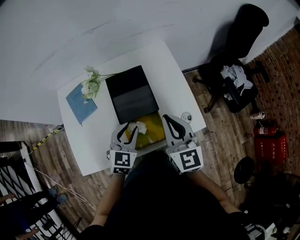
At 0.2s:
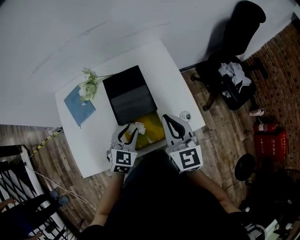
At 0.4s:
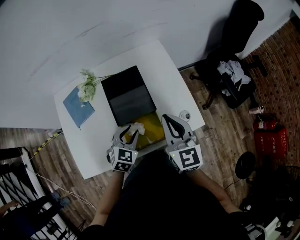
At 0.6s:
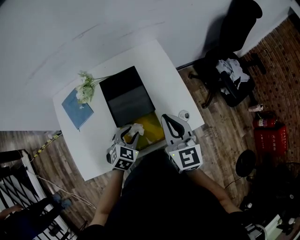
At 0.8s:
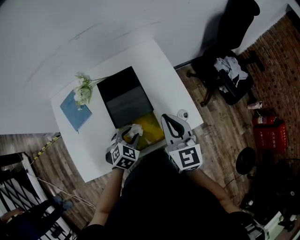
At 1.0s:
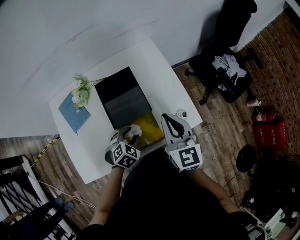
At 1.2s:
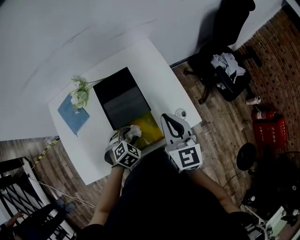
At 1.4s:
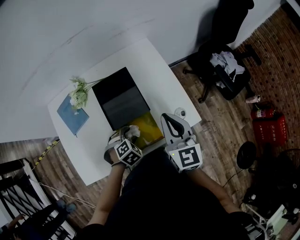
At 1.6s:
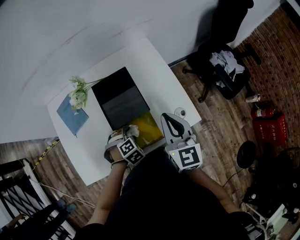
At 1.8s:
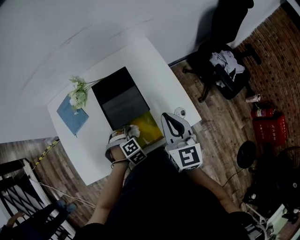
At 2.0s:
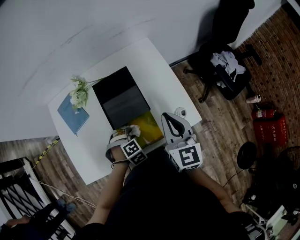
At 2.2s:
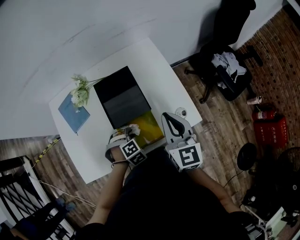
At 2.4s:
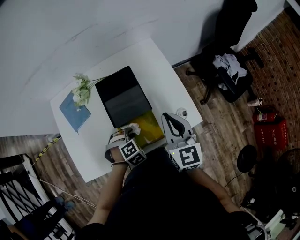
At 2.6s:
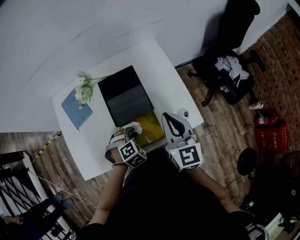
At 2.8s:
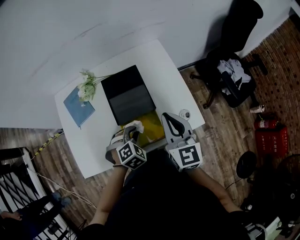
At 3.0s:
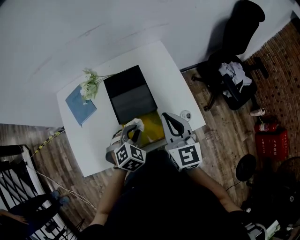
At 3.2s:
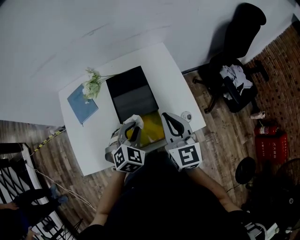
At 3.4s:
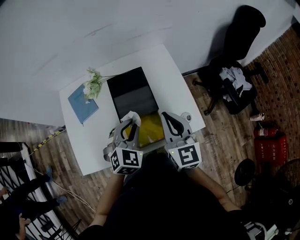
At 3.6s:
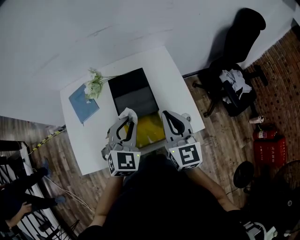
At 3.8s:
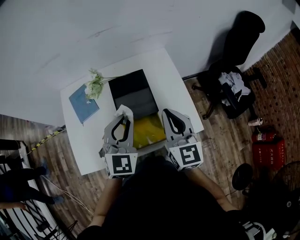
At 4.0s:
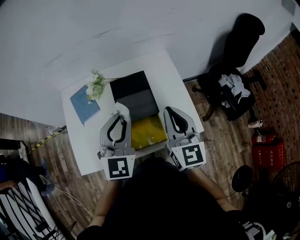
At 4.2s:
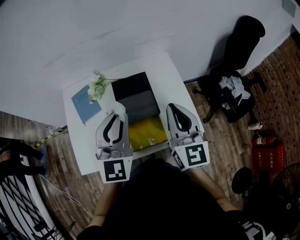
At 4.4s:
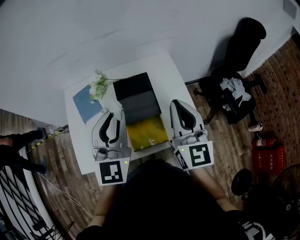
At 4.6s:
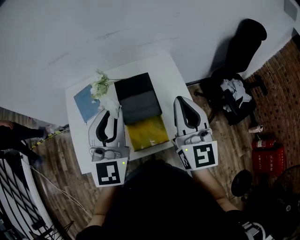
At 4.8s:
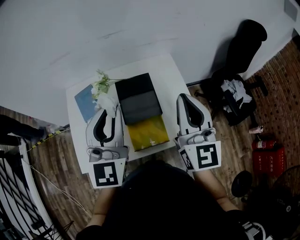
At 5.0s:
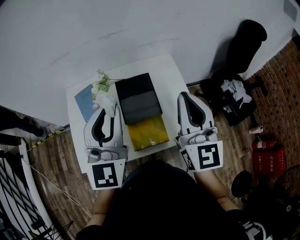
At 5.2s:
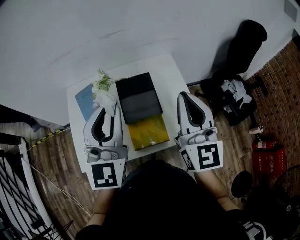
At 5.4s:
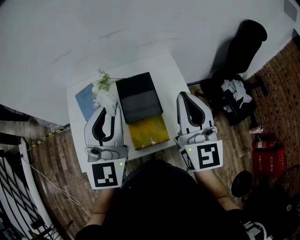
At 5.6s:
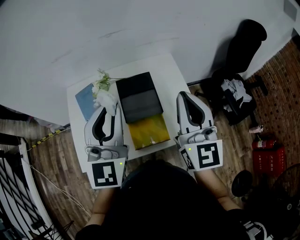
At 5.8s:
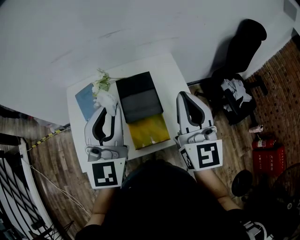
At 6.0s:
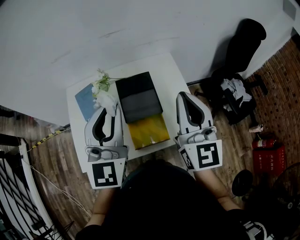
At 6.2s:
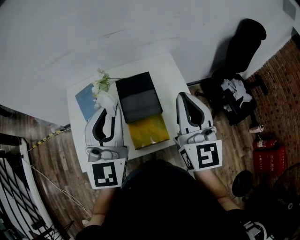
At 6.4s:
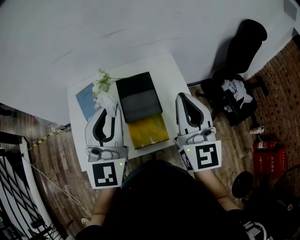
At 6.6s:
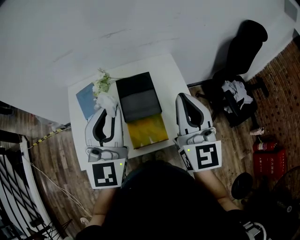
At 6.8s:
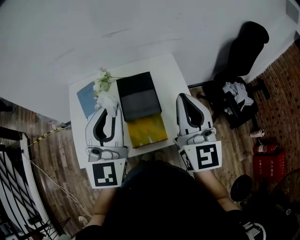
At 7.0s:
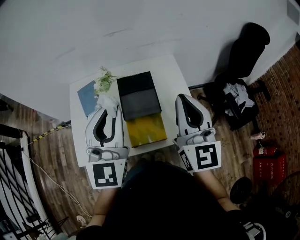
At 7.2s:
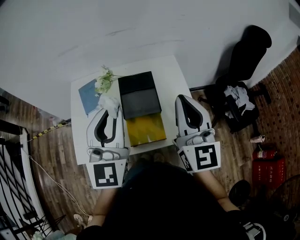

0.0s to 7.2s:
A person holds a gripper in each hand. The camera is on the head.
0.0s to 1.4s: The left gripper shifts approximately 15 cm downward, tips its fingers downward by approximately 40 degrees, and opens its fingers.
1.4s to 2.8s: The left gripper travels upward by approximately 5 cm, and closes.
2.8s to 4.4s: The left gripper travels upward by about 30 cm, and points its fingers some 60 degrees further upward, while the right gripper travels upward by some 15 cm.
4.4s to 7.2s: The grippers stay close to where they were, moving slightly.

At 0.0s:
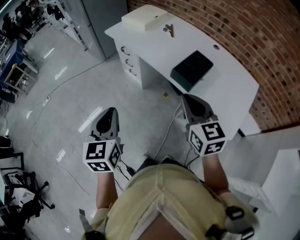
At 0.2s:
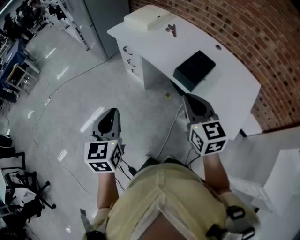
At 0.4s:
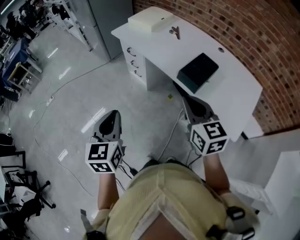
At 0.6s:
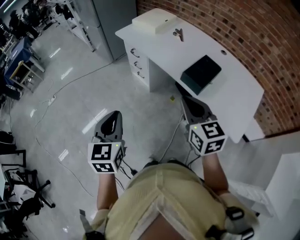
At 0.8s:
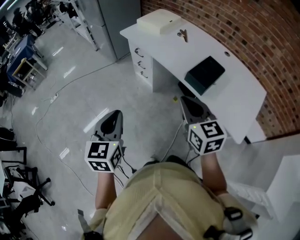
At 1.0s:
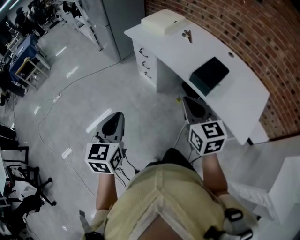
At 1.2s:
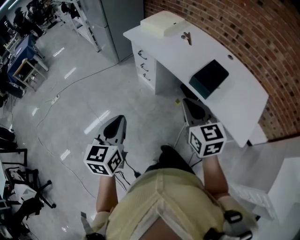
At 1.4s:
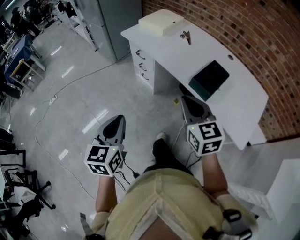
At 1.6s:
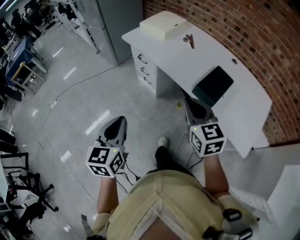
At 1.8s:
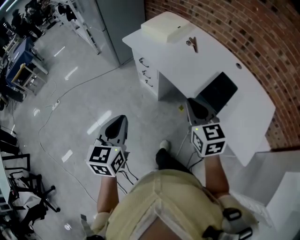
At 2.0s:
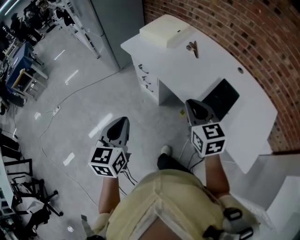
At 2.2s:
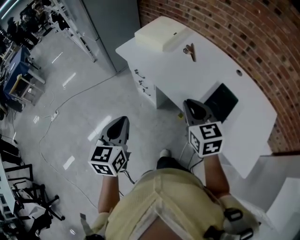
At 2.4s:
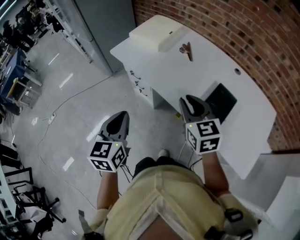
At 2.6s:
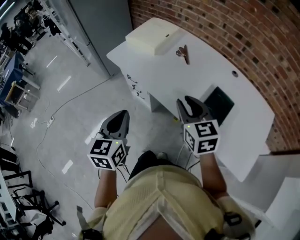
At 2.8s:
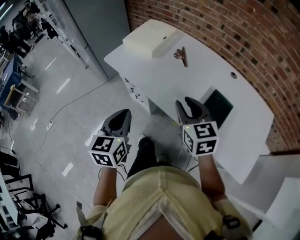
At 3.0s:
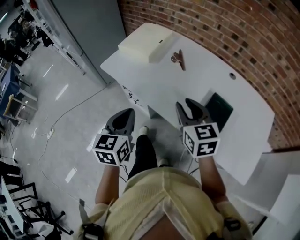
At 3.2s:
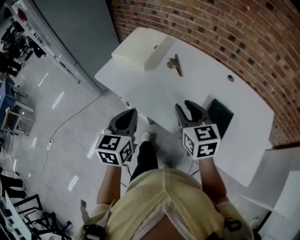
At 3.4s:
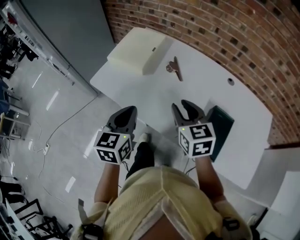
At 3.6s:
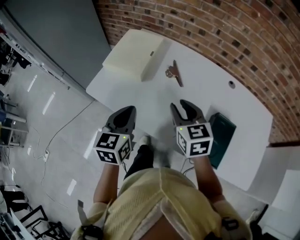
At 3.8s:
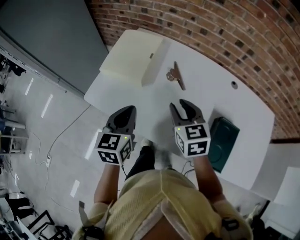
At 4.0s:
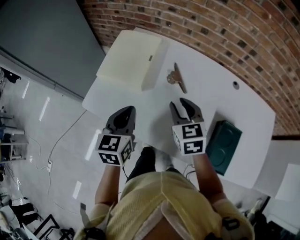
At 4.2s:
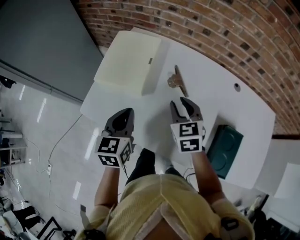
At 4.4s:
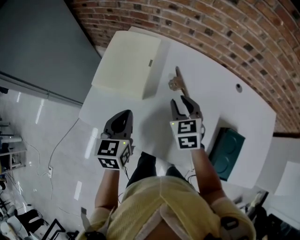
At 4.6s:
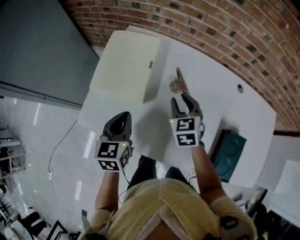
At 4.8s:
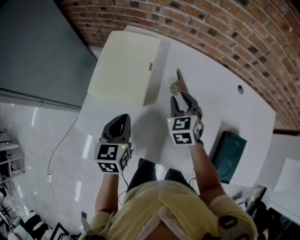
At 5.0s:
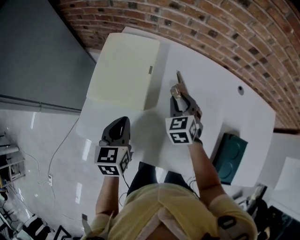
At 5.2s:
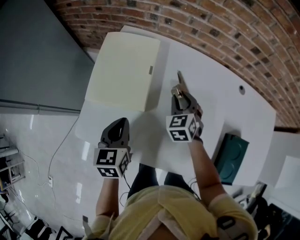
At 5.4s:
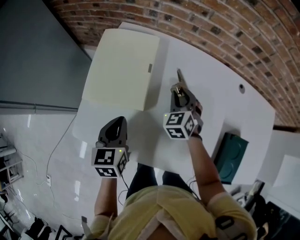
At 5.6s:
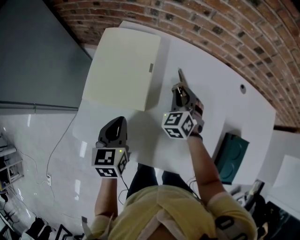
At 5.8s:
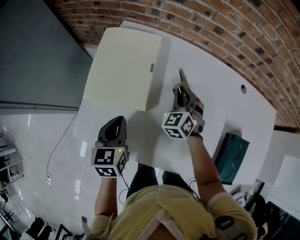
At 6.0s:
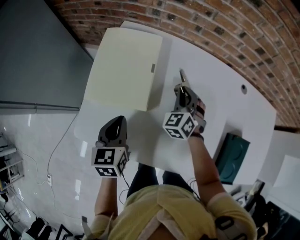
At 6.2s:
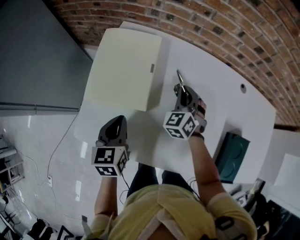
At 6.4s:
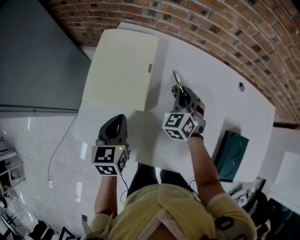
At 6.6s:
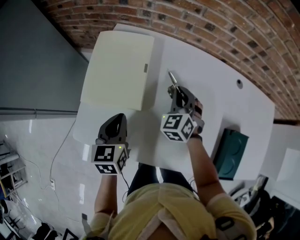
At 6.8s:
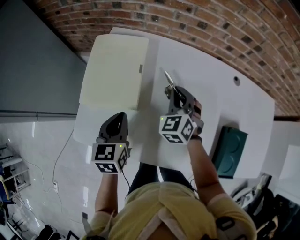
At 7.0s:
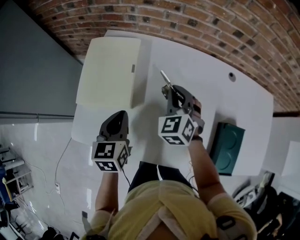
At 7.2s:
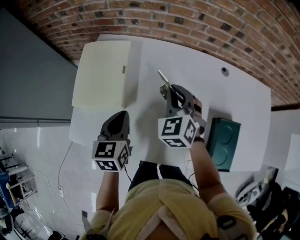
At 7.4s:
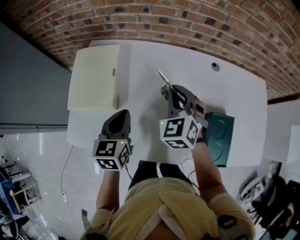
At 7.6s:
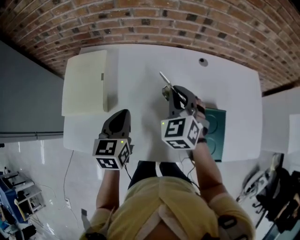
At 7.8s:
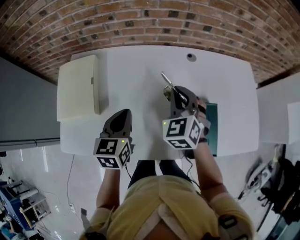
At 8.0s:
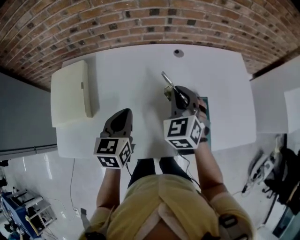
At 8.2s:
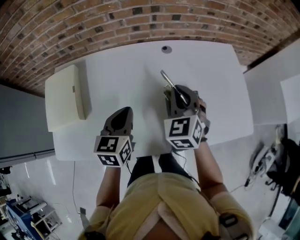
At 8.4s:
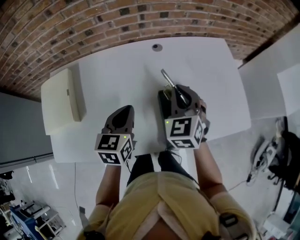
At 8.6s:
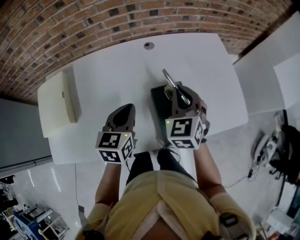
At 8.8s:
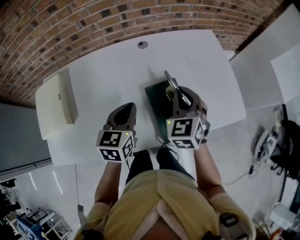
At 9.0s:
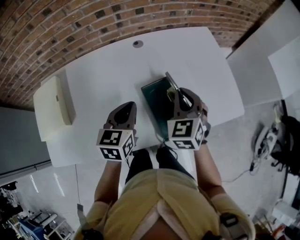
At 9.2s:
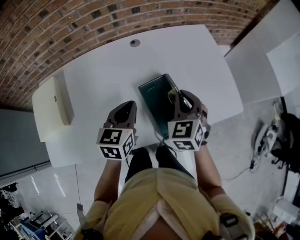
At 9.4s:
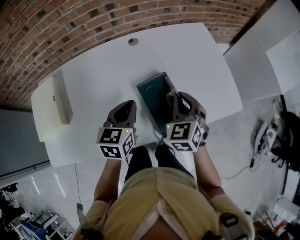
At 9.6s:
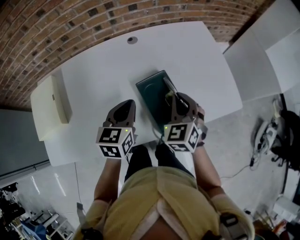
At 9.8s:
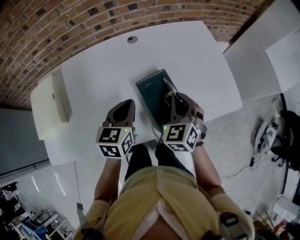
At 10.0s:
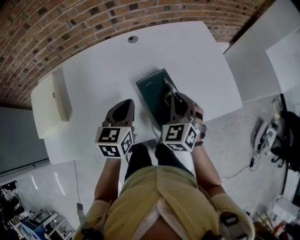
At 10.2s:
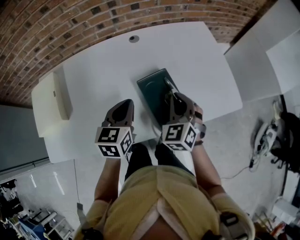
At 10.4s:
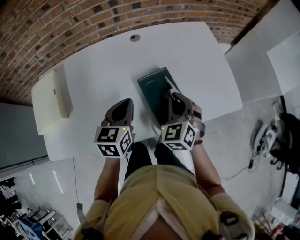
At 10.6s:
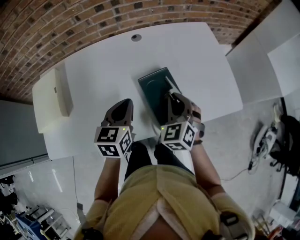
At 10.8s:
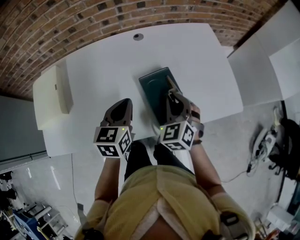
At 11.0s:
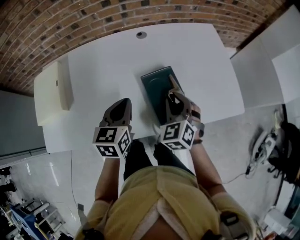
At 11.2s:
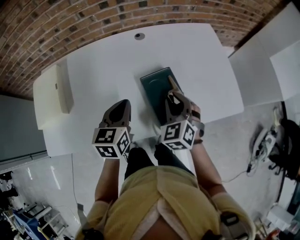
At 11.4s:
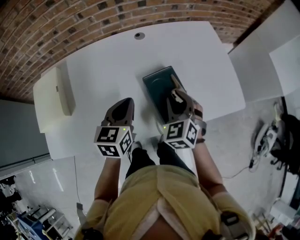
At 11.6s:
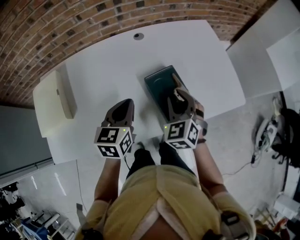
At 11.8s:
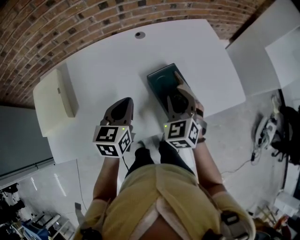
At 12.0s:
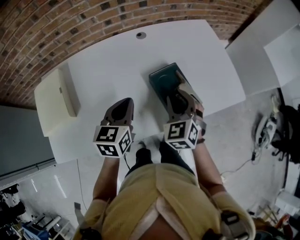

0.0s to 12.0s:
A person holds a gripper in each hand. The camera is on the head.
0.0s to 1.6s: The right gripper is displaced forward and to the left by about 10 cm, while the left gripper heads to the left and forward, covering some 10 cm.
1.6s to 3.0s: The grippers both shift forward by about 25 cm. The right gripper opens its fingers.
3.0s to 4.4s: The two grippers go approximately 30 cm forward. The right gripper changes its angle by approximately 30 degrees.
4.4s to 6.0s: The right gripper is displaced forward and downward by approximately 15 cm, and turns by about 30 degrees, while the left gripper shifts roughly 10 cm downward and to the left.
6.0s to 7.6s: The right gripper shifts about 25 cm to the right, upward and backward; the left gripper moves to the right and upward, some 20 cm.
7.6s to 9.0s: The two grippers go approximately 30 cm to the right. The right gripper rotates some 30 degrees. Meanwhile the left gripper swivels approximately 20 degrees.
9.0s to 10.4s: The right gripper goes about 5 cm downward.
10.4s to 12.0s: The grippers both shift to the left by about 5 cm. The right gripper opens.

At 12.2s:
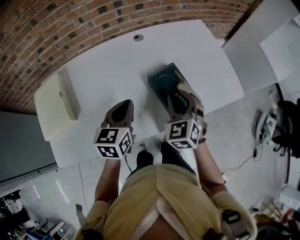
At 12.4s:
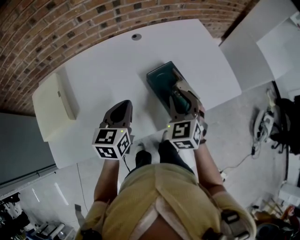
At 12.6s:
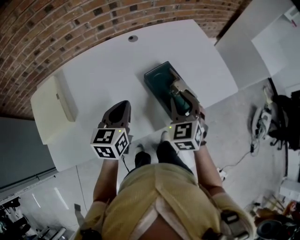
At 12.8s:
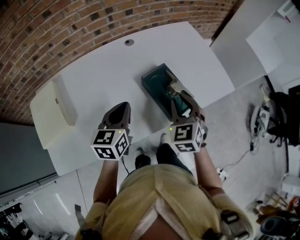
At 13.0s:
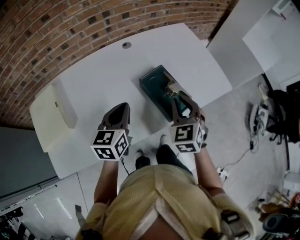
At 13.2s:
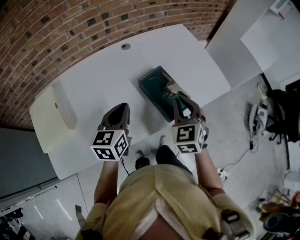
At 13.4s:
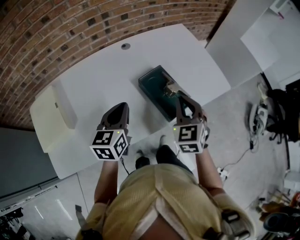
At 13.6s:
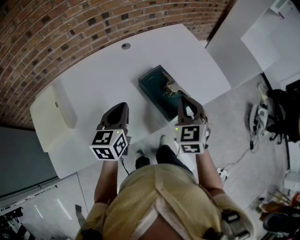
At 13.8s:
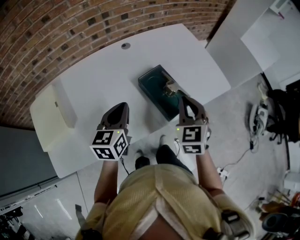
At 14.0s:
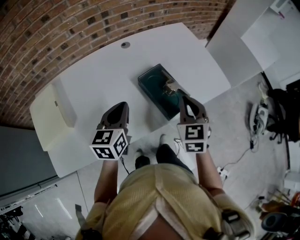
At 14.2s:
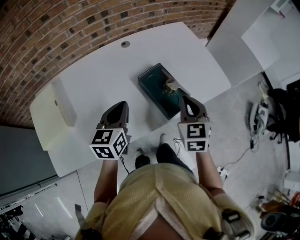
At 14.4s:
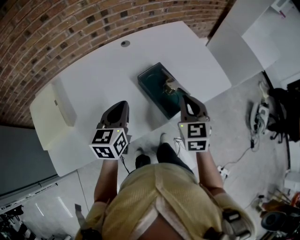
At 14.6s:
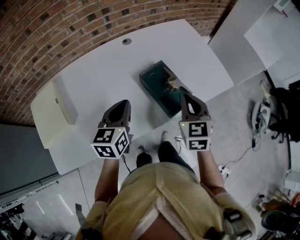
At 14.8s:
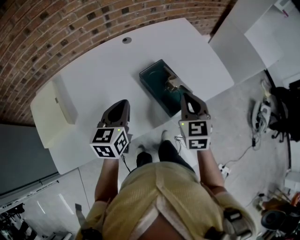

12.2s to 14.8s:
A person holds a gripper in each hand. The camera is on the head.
12.2s to 13.4s: The right gripper shifts some 5 cm to the right, and closes.
13.4s to 14.8s: There are only small adjustments of the grippers.

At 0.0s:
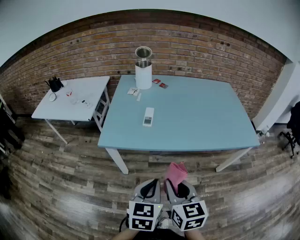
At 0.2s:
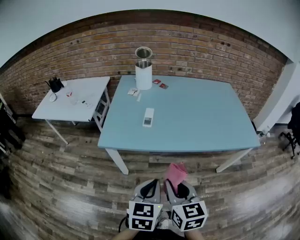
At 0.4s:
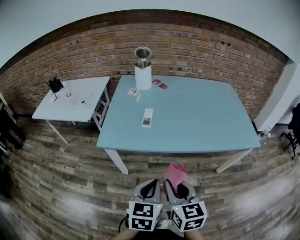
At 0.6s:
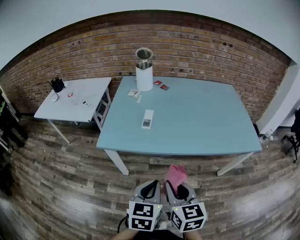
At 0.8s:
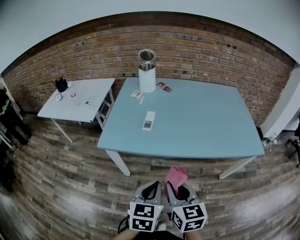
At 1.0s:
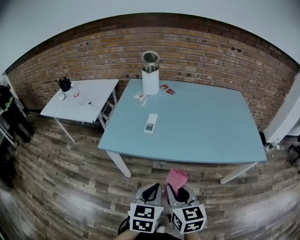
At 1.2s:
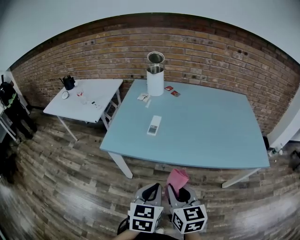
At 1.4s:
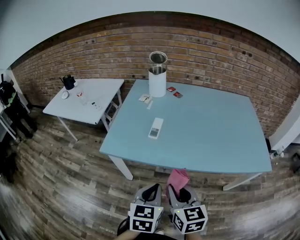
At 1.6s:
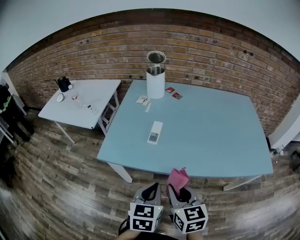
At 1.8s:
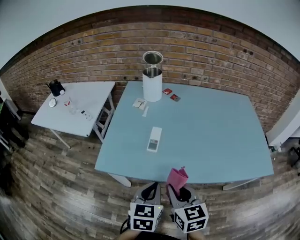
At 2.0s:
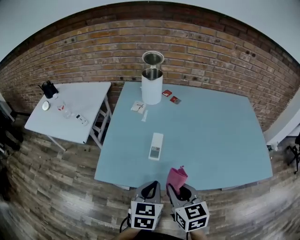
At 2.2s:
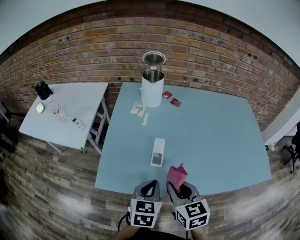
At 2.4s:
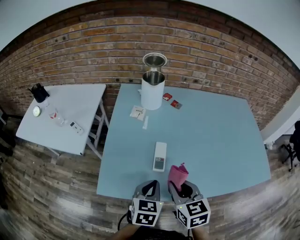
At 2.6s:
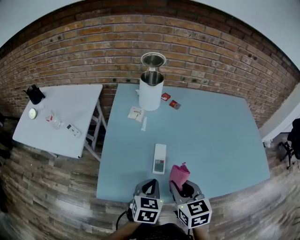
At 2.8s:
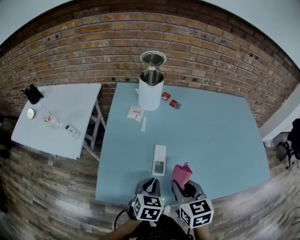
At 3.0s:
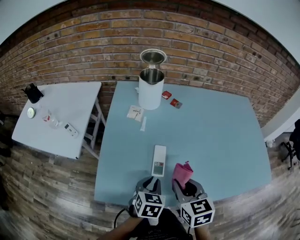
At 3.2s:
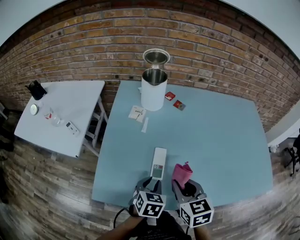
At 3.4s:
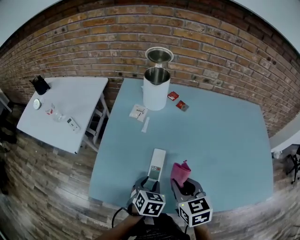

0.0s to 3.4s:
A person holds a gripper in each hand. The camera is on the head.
0.0s to 1.6s: The grippers both shift forward by about 10 cm.
1.6s to 3.4s: The left gripper heads forward and downward, covering roughly 30 cm, swivels approximately 30 degrees, and opens. Meanwhile the right gripper shifts some 25 cm forward.
